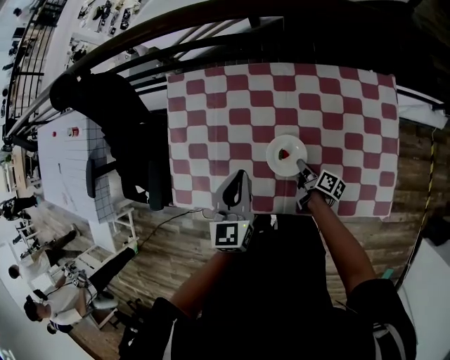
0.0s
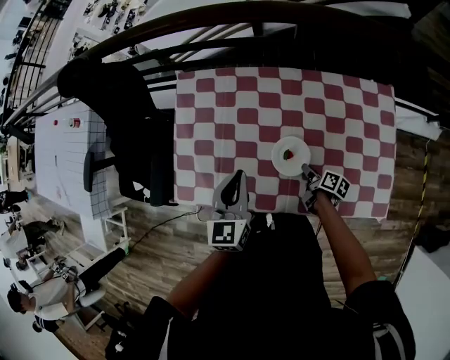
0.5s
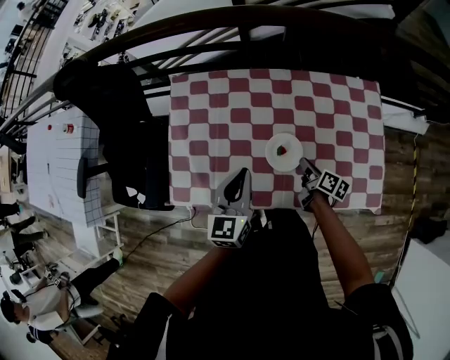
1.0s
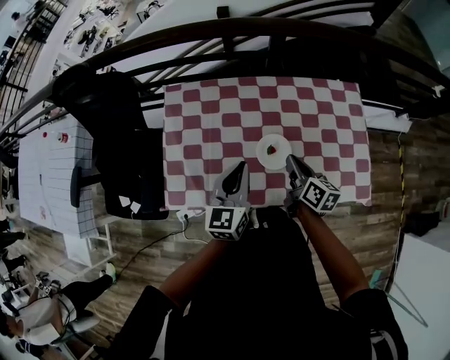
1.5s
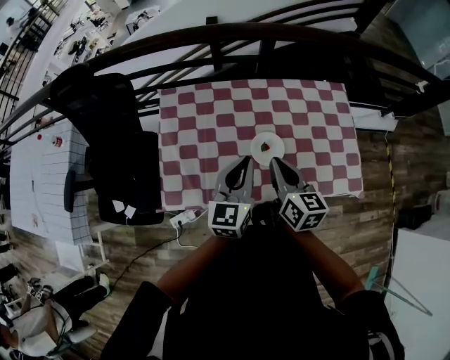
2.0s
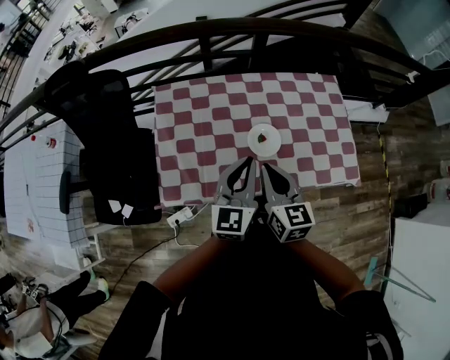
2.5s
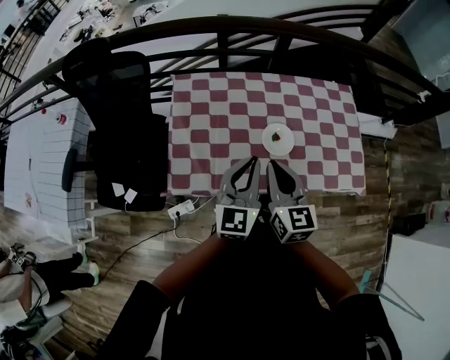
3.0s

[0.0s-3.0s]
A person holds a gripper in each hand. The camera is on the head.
0.0s to 1.5s: The left gripper goes roughly 5 cm upward.
1.5s to 3.0s: The left gripper moves approximately 10 cm.

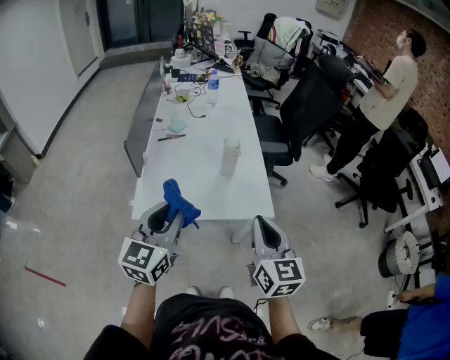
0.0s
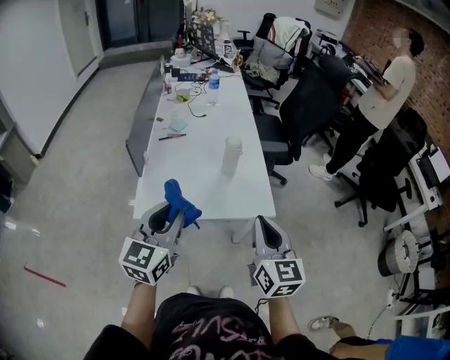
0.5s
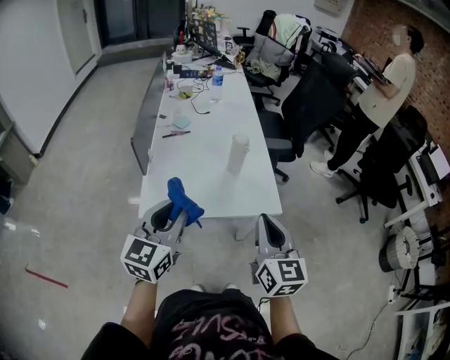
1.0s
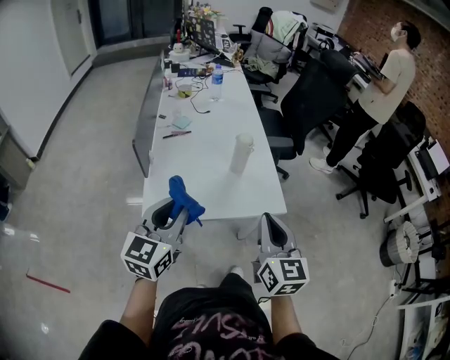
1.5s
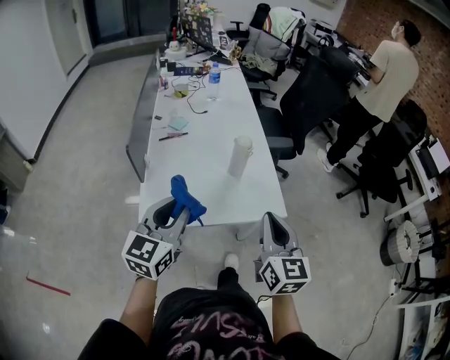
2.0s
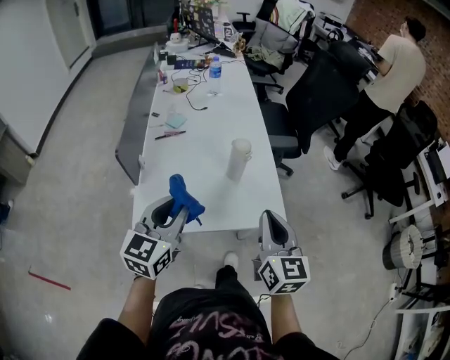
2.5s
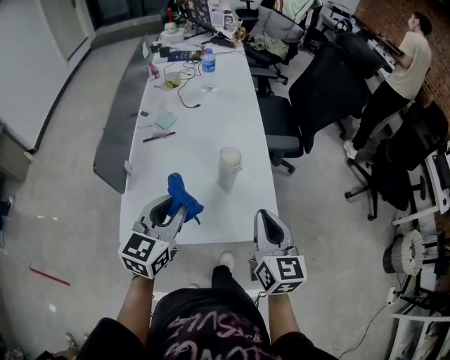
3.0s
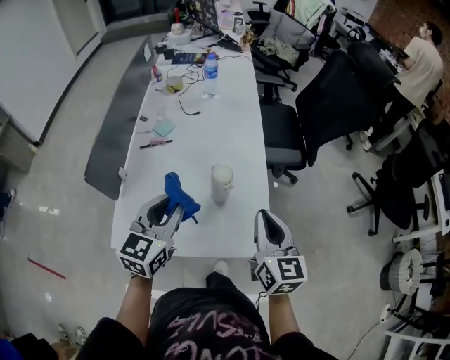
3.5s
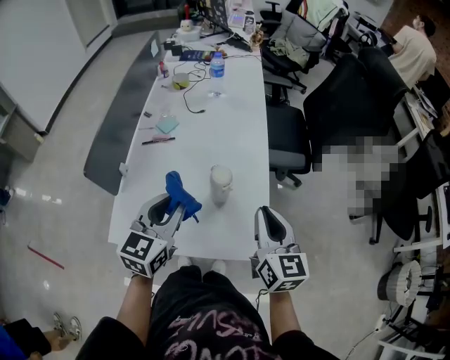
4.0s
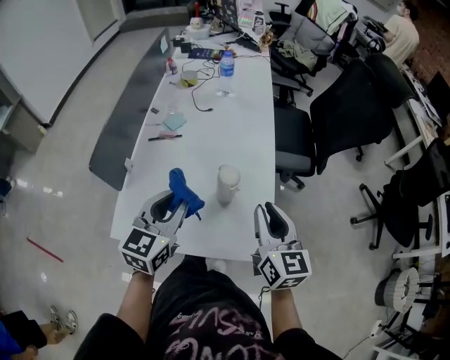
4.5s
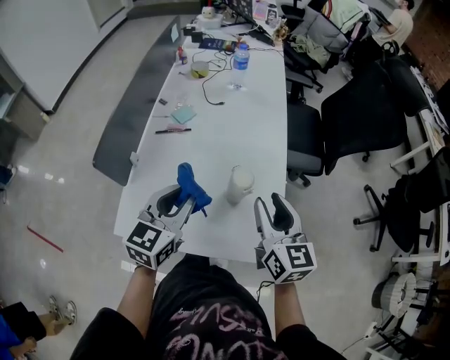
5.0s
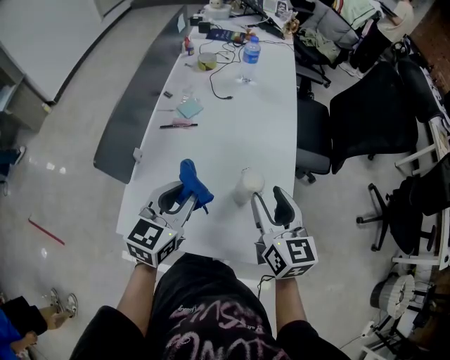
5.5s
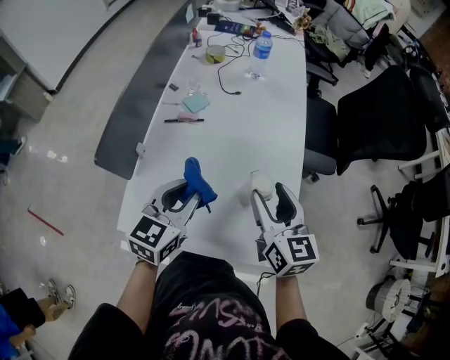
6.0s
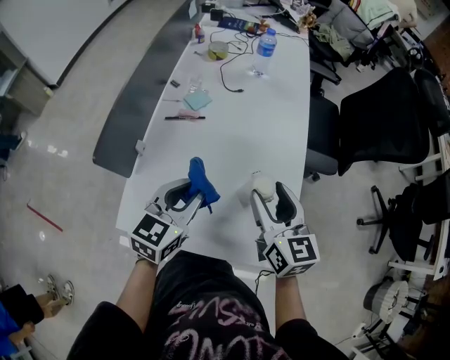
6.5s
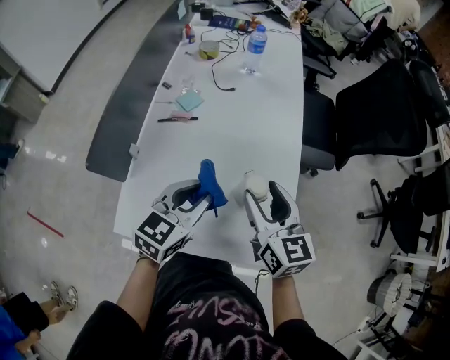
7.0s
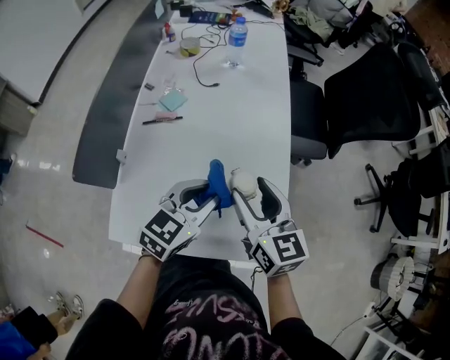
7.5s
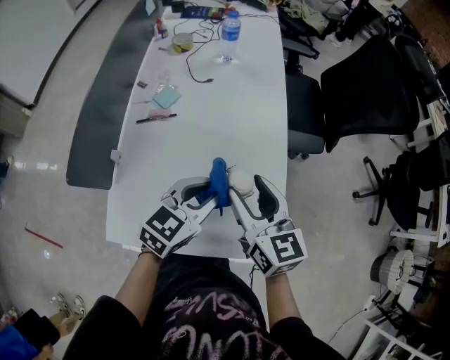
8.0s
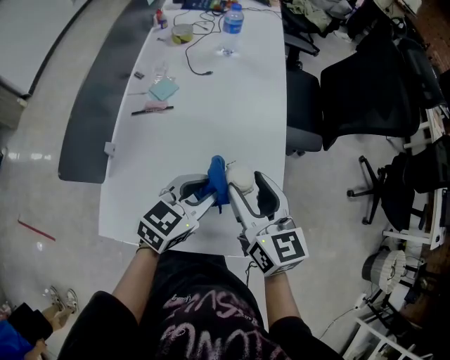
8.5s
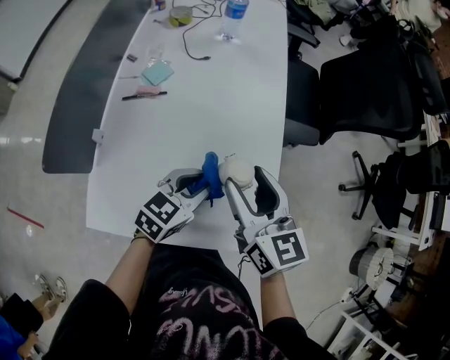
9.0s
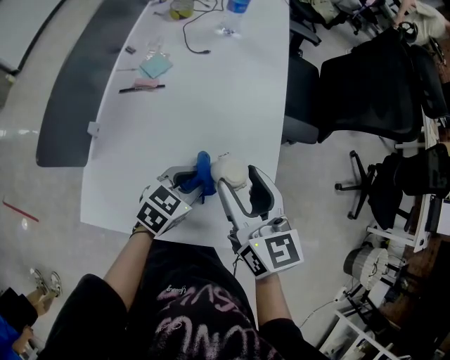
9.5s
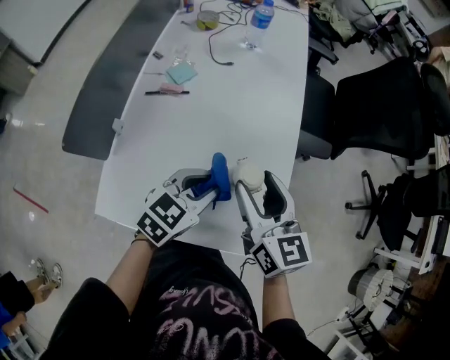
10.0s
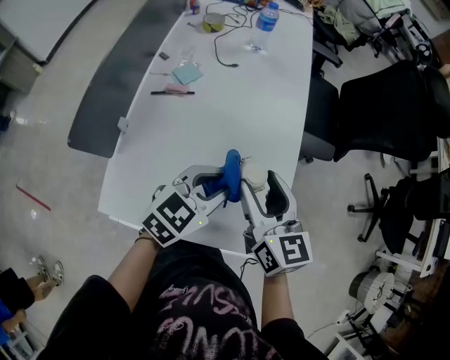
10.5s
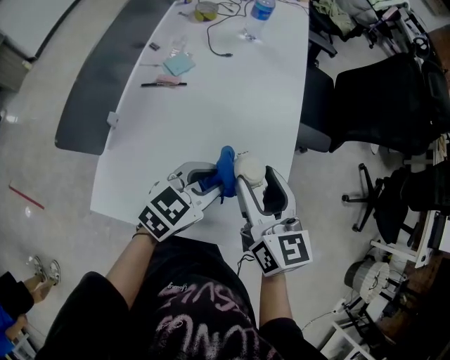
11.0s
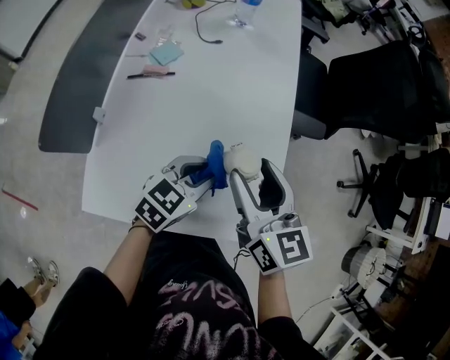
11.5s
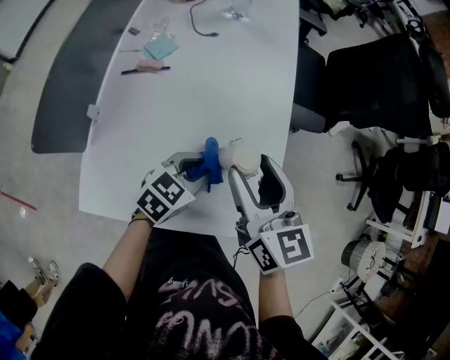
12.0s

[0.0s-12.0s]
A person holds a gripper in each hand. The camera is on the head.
0.0s to 2.0s: The left gripper ends up roughly 5 cm from where it was. Meanwhile the right gripper ends up approximately 5 cm from where it was.
2.0s to 4.0s: The right gripper shifts about 25 cm forward. The left gripper is displaced forward and to the right by approximately 20 cm.
4.0s to 6.0s: The left gripper is displaced to the left and forward by roughly 10 cm, while the right gripper goes approximately 15 cm to the left and forward, and opens its fingers.
6.0s to 8.0s: The left gripper moves to the right, about 10 cm, and rotates about 20 degrees.
10.0s to 12.0s: The left gripper goes about 5 cm downward.

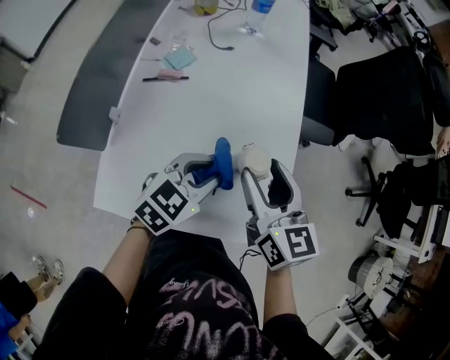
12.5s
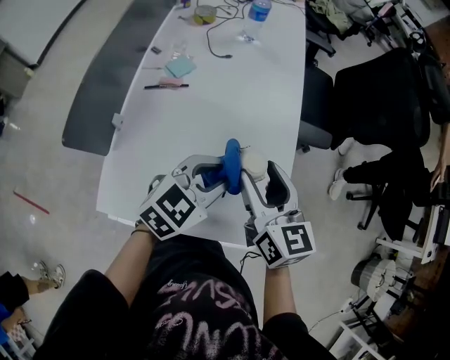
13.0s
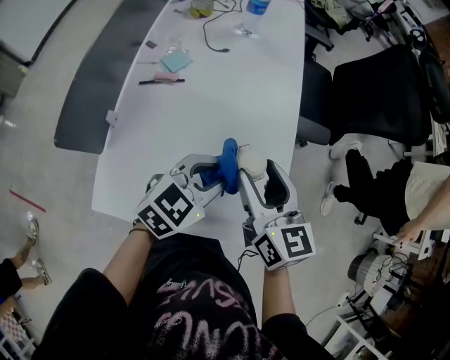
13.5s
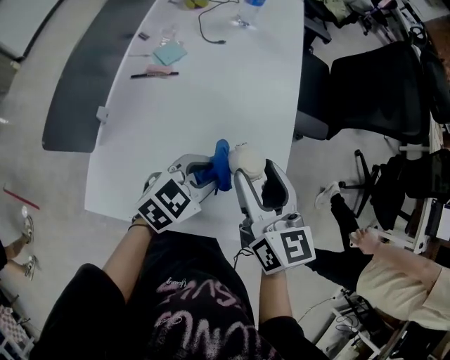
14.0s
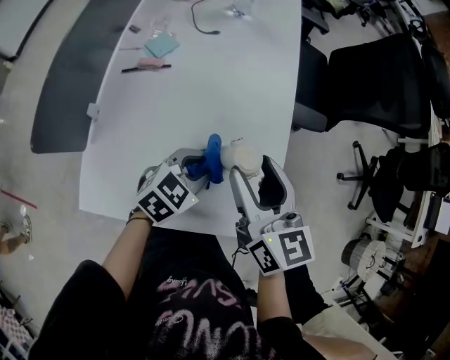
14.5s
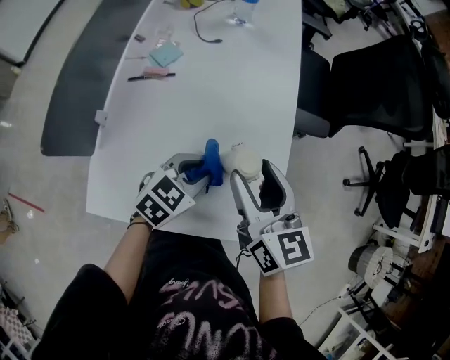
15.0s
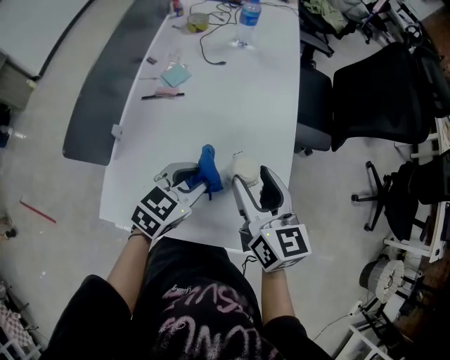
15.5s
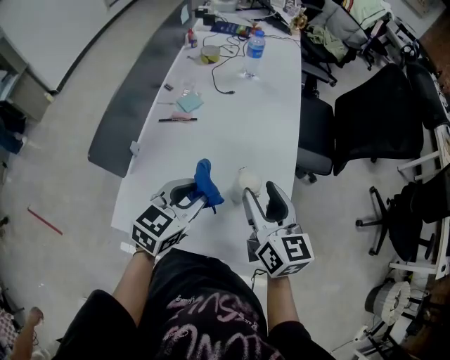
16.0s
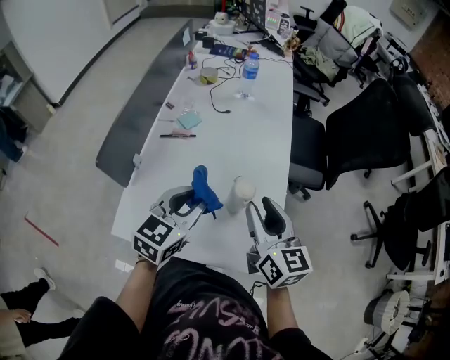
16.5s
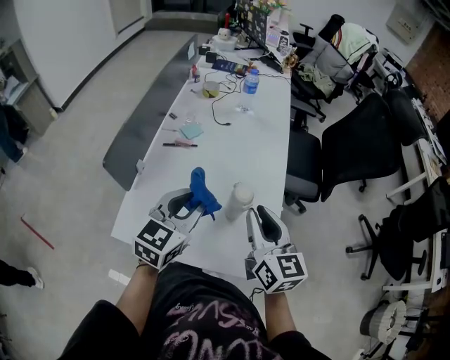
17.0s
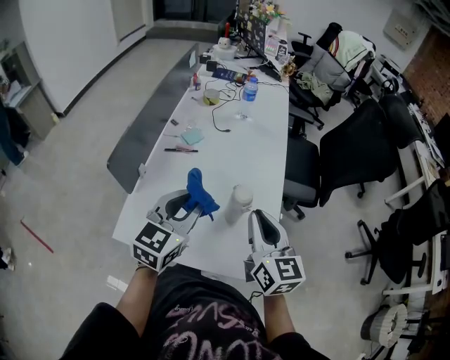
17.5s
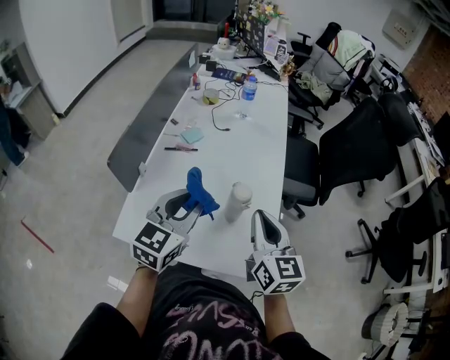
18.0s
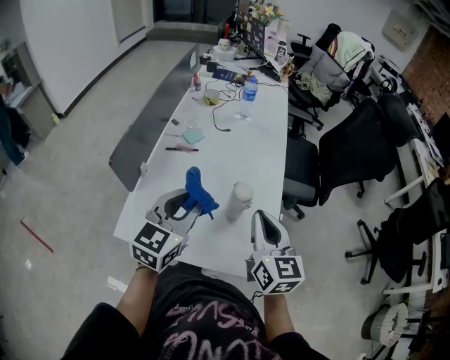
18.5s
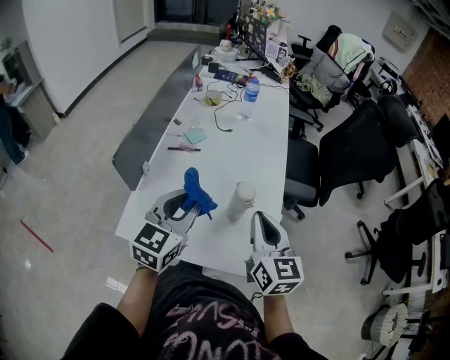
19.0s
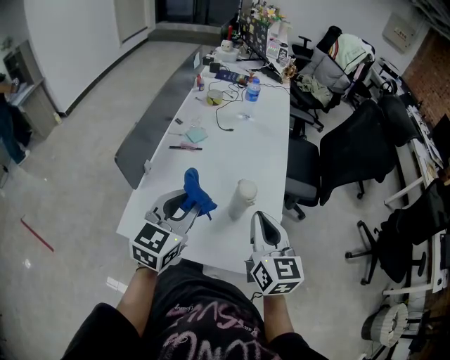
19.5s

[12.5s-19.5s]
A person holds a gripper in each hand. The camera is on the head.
12.5s to 14.5s: The left gripper heads downward, covering about 5 cm.
14.5s to 16.0s: The left gripper is displaced upward and to the left by approximately 15 cm, and rotates roughly 20 degrees.
16.0s to 17.5s: The left gripper moves upward, roughly 10 cm, while the right gripper goes roughly 5 cm backward, and closes its fingers.
17.5s to 19.5s: The grippers stay close to where they were, moving slightly.

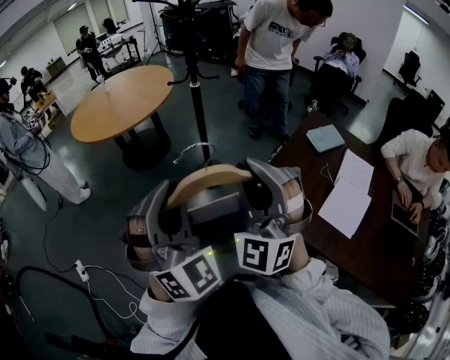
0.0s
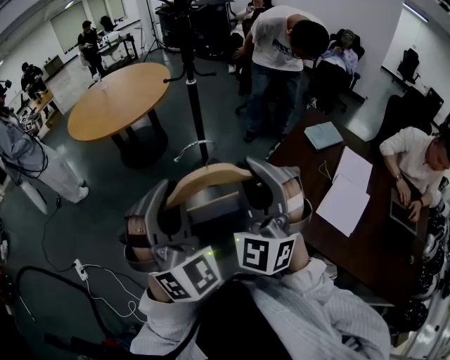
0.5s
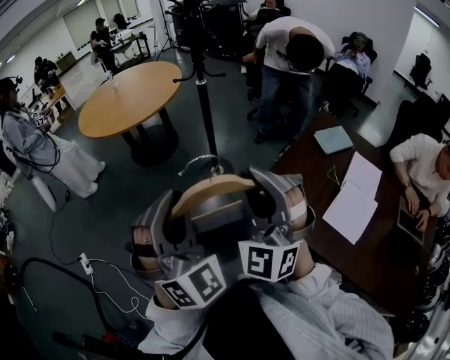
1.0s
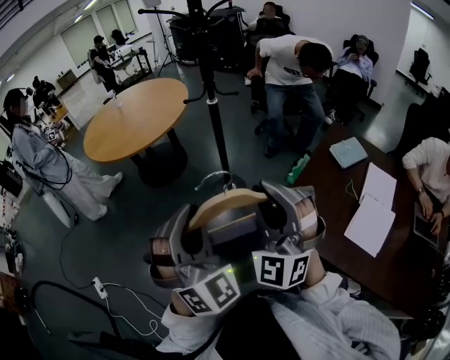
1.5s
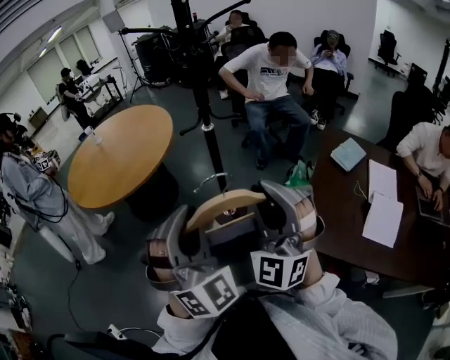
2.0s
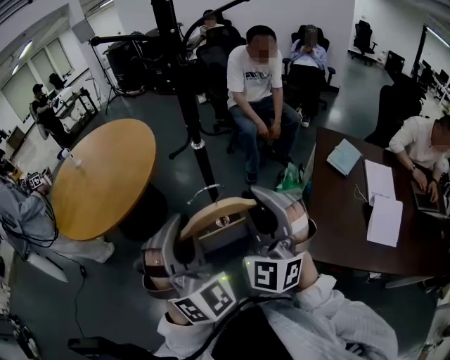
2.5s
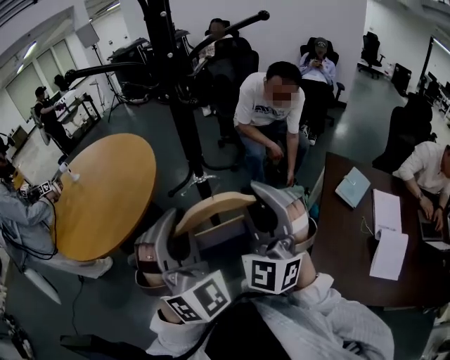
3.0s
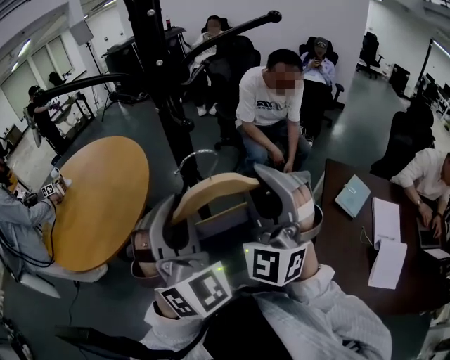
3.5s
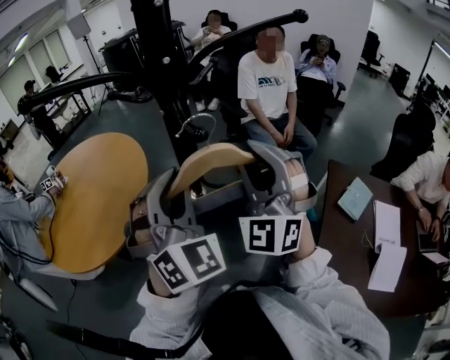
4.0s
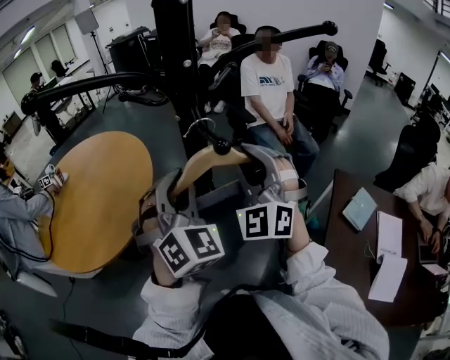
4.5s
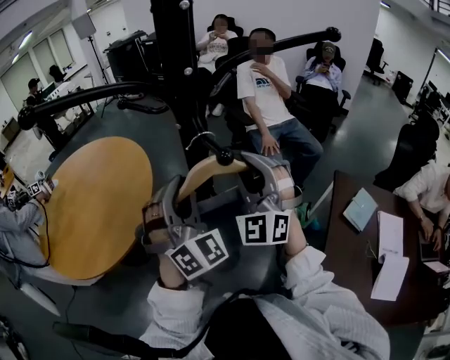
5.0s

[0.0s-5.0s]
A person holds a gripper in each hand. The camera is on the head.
0.0s to 2.5s: The grippers both shift forward by roughly 35 cm.
2.5s to 5.0s: Both grippers travel together forward, roughly 35 cm.
